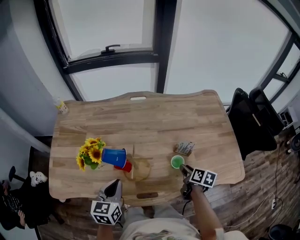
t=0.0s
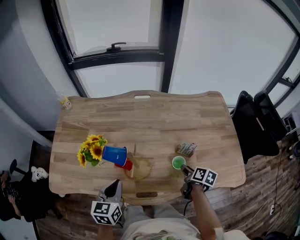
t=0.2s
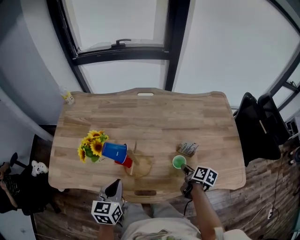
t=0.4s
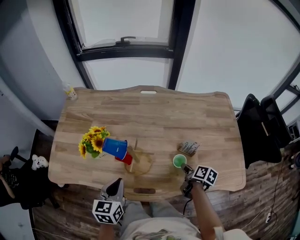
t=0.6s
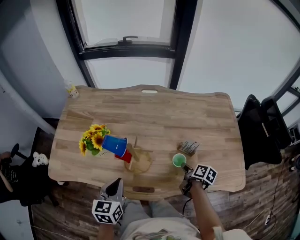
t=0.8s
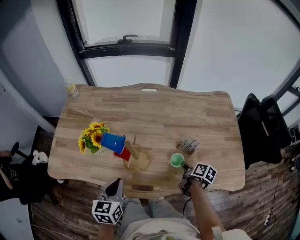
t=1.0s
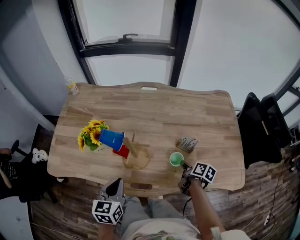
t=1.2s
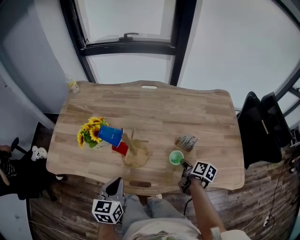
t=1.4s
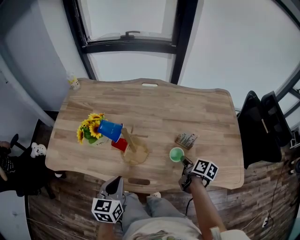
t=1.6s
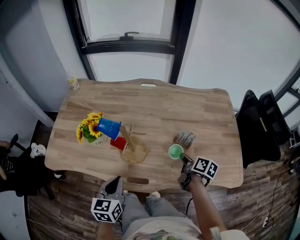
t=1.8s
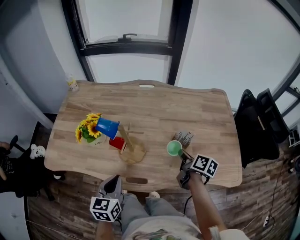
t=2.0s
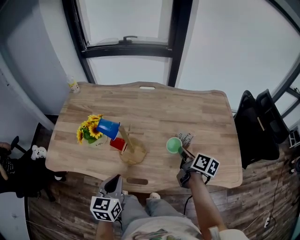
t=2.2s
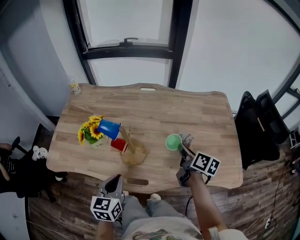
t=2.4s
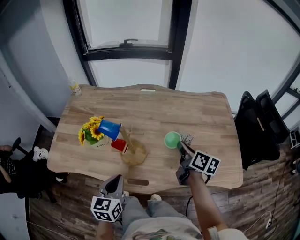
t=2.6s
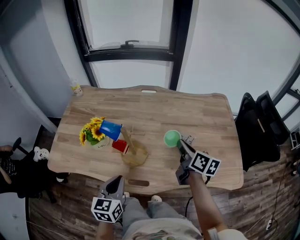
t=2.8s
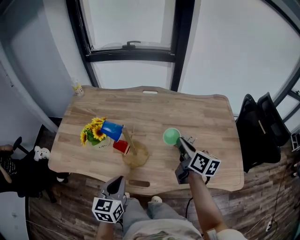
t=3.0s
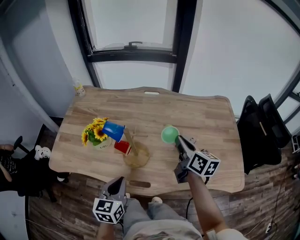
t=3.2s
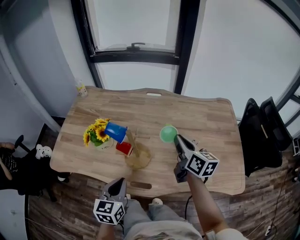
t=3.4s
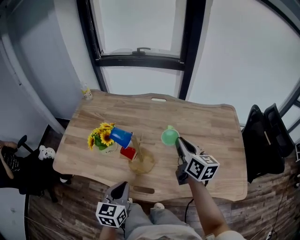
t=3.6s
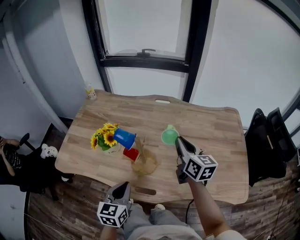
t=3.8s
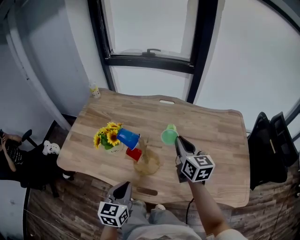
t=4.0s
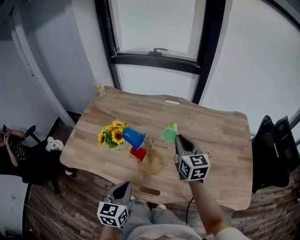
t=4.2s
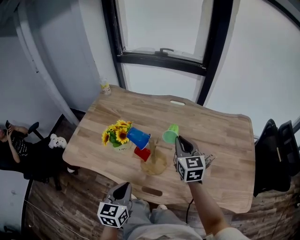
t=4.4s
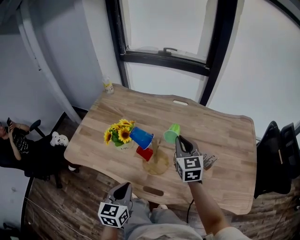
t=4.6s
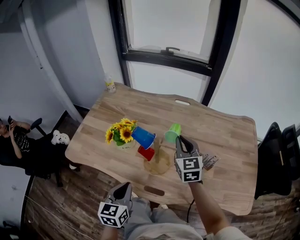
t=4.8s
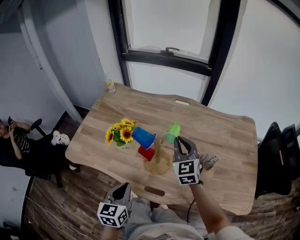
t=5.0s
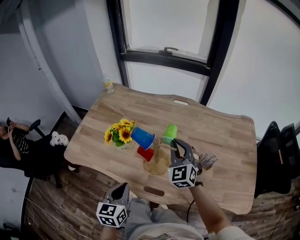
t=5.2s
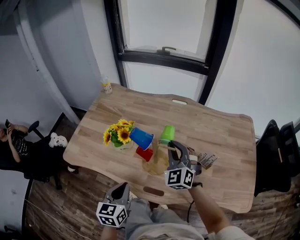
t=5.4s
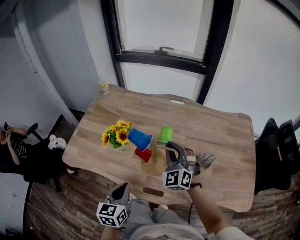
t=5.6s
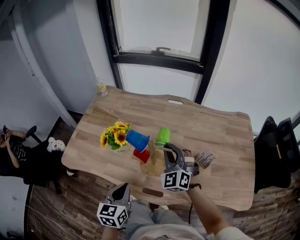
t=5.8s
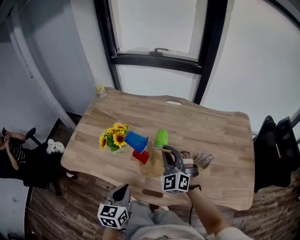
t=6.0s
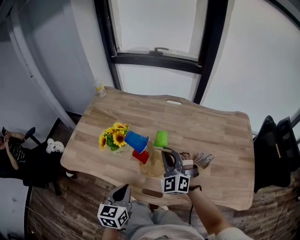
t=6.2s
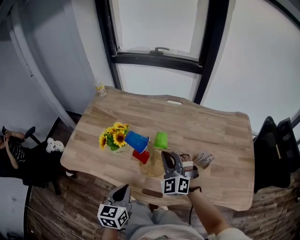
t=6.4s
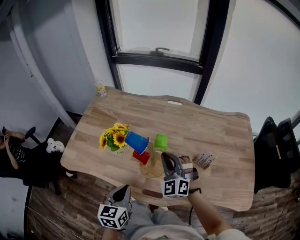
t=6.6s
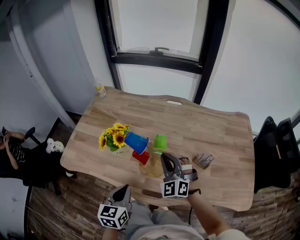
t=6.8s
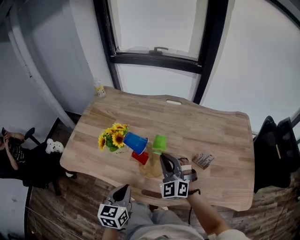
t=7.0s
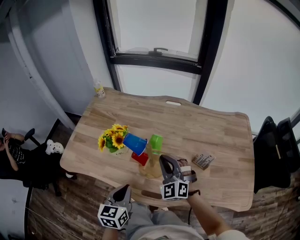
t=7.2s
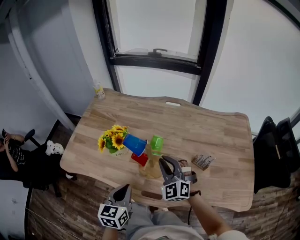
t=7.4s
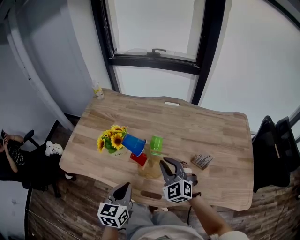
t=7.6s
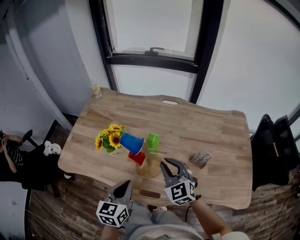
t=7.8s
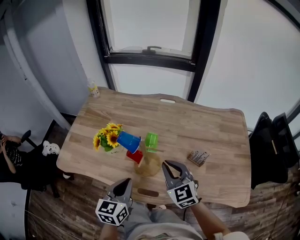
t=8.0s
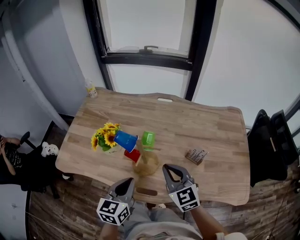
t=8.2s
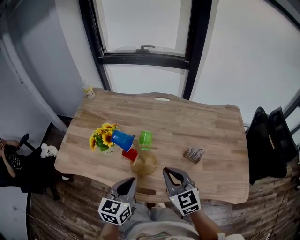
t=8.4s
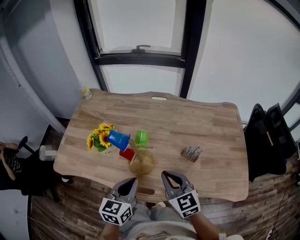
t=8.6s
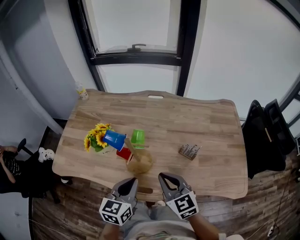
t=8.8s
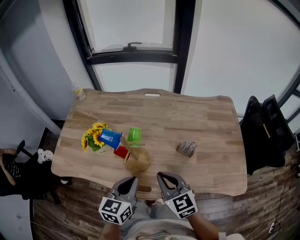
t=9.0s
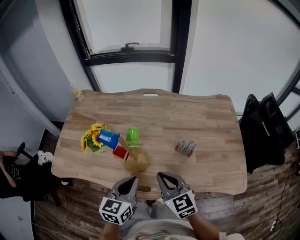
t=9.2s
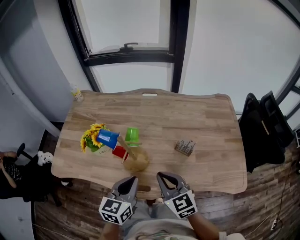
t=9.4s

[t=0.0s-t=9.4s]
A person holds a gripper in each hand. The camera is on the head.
t=0.0s to t=1.6s: The left gripper travels backward by about 10 cm. Meanwhile the right gripper closes its fingers.
t=1.6s to t=3.2s: The right gripper goes approximately 20 cm upward, and turns by approximately 40 degrees.
t=3.2s to t=4.8s: The right gripper moves to the left and forward, roughly 15 cm, and rolls counterclockwise, seen from behind, by approximately 50 degrees. Meanwhile the left gripper travels to the left by some 5 cm.
t=4.8s to t=6.2s: The right gripper ends up about 5 cm from where it was, and rolls counterclockwise, seen from behind, by some 40 degrees.
t=6.2s to t=7.8s: The right gripper changes its angle by about 30 degrees.
t=7.8s to t=9.4s: The right gripper travels backward and to the right by roughly 10 cm, and changes its angle by roughly 20 degrees. The left gripper heads to the right, covering roughly 10 cm.

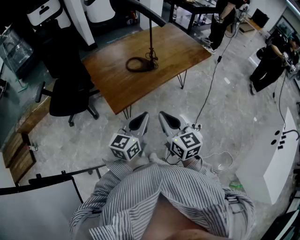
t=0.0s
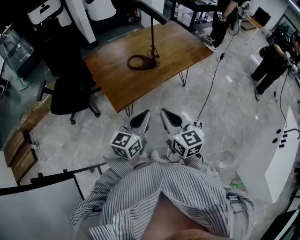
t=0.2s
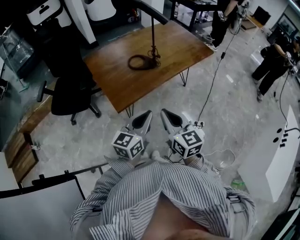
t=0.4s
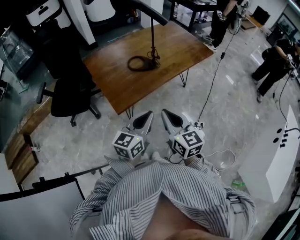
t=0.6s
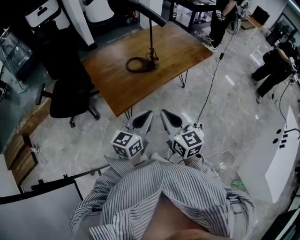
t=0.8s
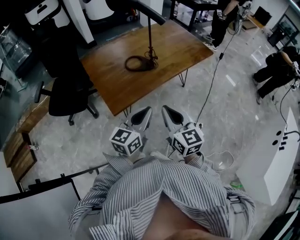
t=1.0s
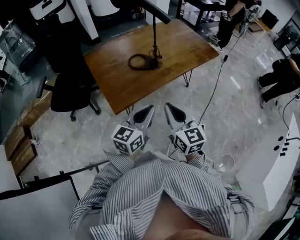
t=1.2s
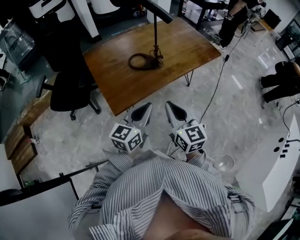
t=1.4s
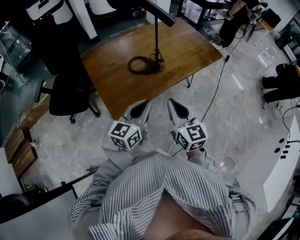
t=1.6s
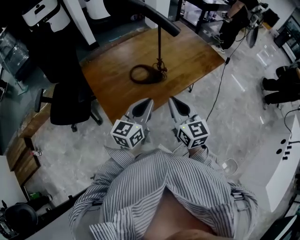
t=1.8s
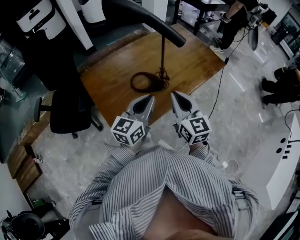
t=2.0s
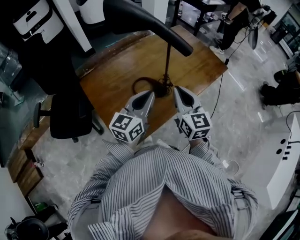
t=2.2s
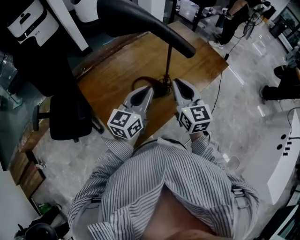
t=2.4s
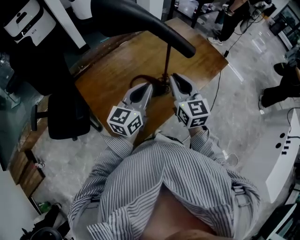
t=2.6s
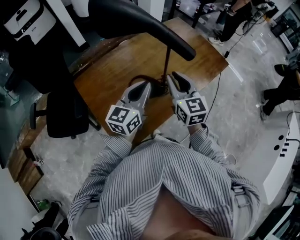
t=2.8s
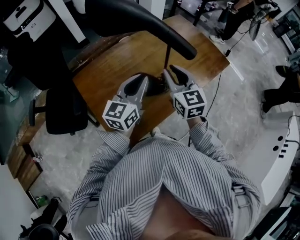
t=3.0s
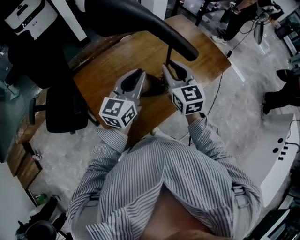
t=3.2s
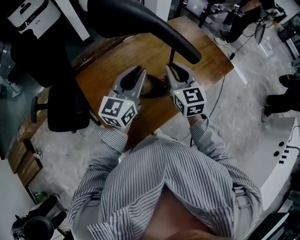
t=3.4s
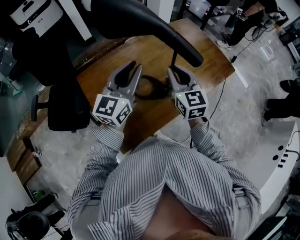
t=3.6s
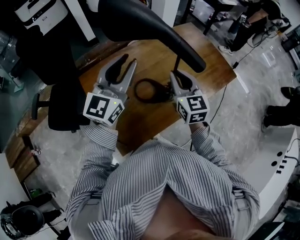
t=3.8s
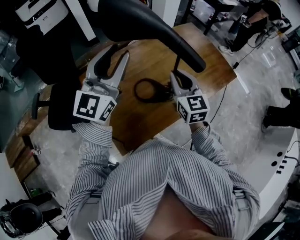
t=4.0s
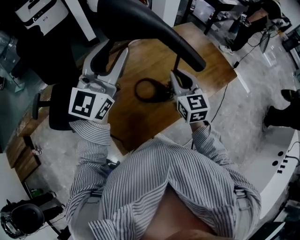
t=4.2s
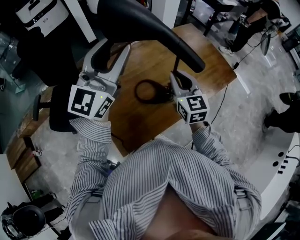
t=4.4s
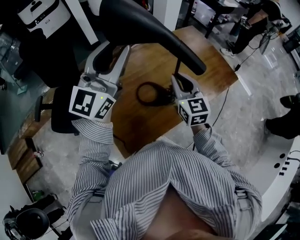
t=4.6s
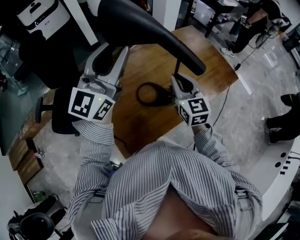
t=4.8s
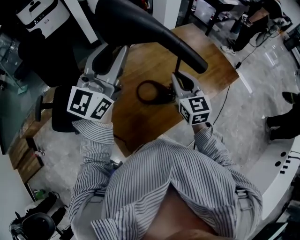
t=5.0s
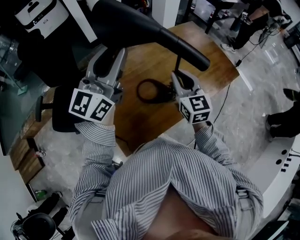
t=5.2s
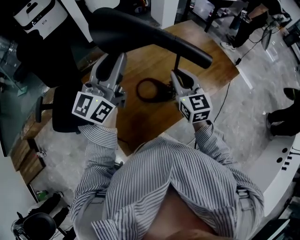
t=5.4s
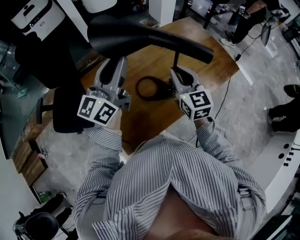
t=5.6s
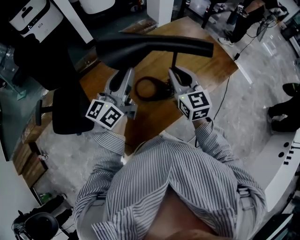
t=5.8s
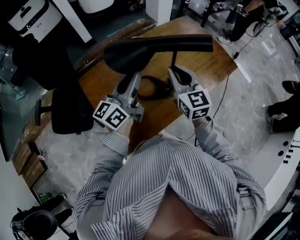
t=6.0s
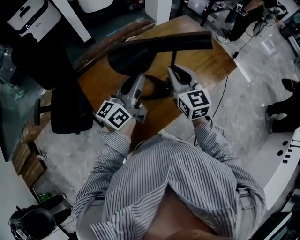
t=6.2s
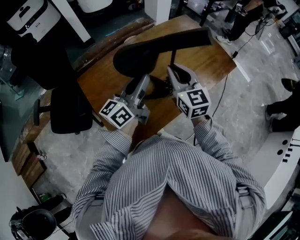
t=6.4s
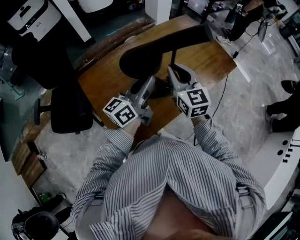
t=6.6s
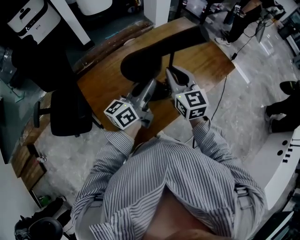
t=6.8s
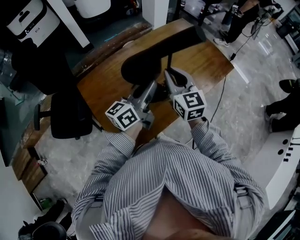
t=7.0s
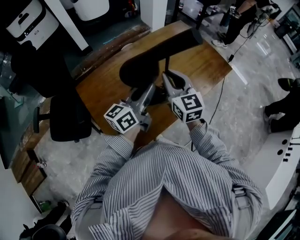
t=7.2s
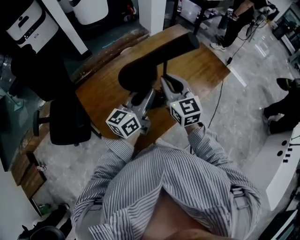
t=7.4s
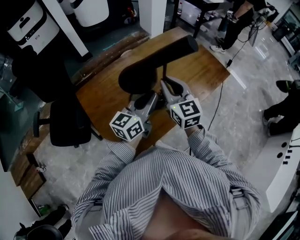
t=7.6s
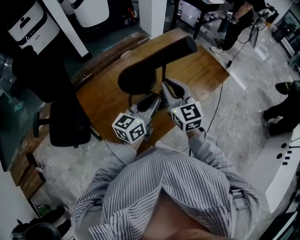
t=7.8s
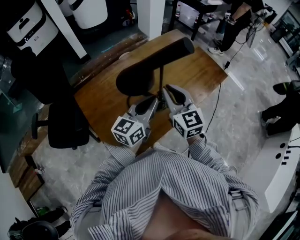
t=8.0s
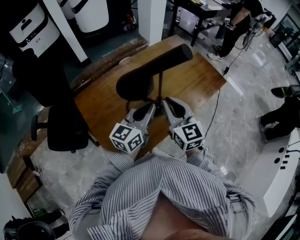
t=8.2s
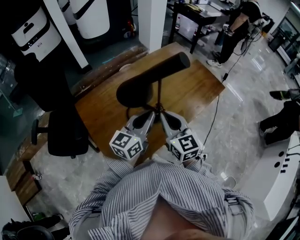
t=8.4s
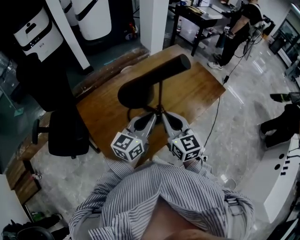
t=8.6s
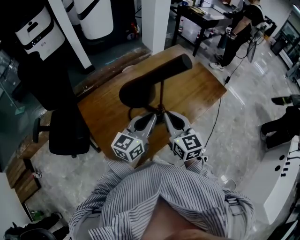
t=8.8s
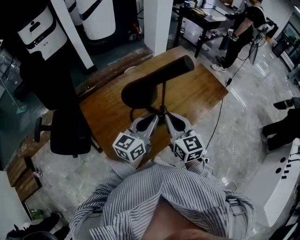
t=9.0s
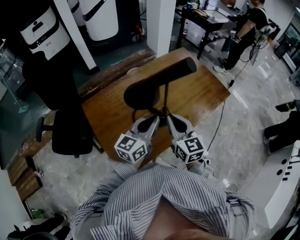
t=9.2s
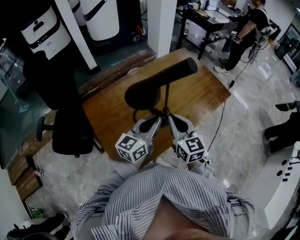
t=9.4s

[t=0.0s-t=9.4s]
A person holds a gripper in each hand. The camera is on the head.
t=0.0s to t=1.6s: The two grippers go approximately 15 cm forward.
t=1.6s to t=3.2s: Both grippers move forward, roughly 30 cm.
t=3.2s to t=4.8s: The left gripper heads upward, covering roughly 20 cm, and swivels some 30 degrees.
t=4.8s to t=6.2s: The left gripper travels downward by some 15 cm, and rotates around the line of its fingers by approximately 40 degrees, counterclockwise from behind.
t=6.2s to t=7.8s: The left gripper heads to the right, covering about 10 cm.
t=7.8s to t=9.4s: The right gripper moves backward, roughly 5 cm.

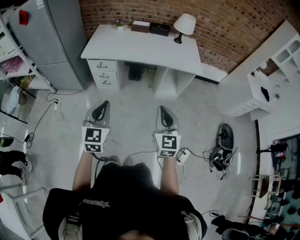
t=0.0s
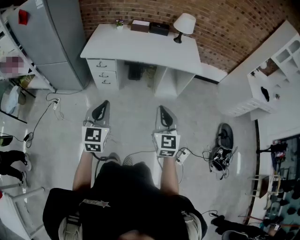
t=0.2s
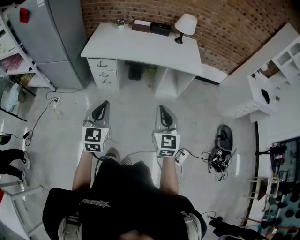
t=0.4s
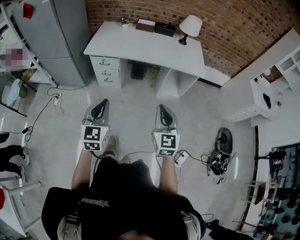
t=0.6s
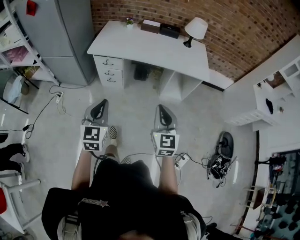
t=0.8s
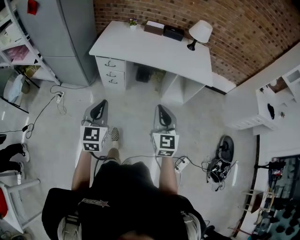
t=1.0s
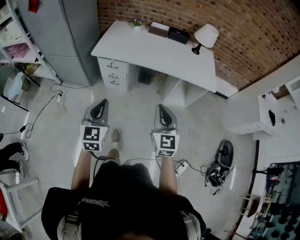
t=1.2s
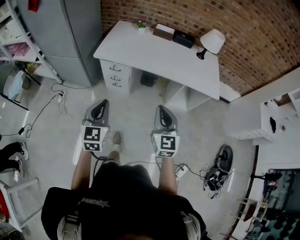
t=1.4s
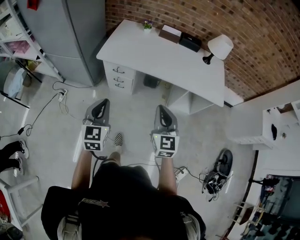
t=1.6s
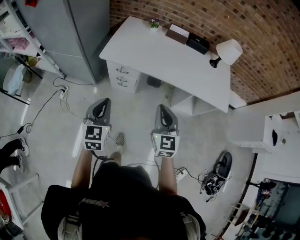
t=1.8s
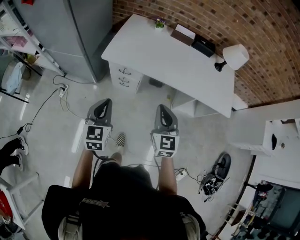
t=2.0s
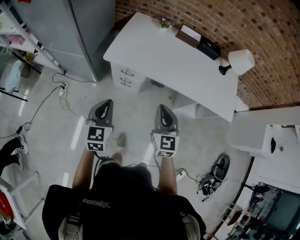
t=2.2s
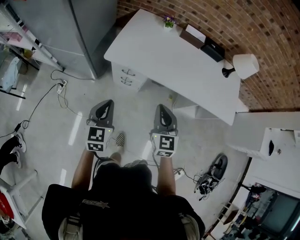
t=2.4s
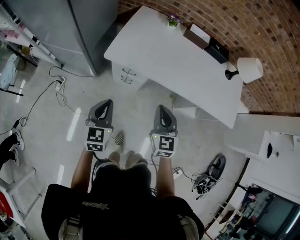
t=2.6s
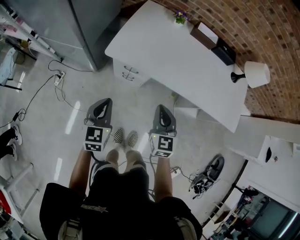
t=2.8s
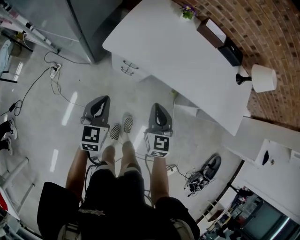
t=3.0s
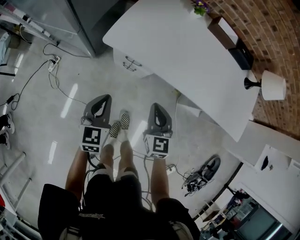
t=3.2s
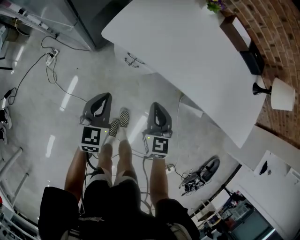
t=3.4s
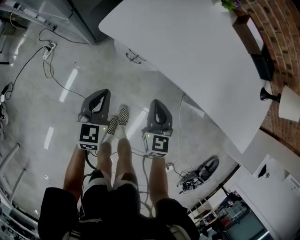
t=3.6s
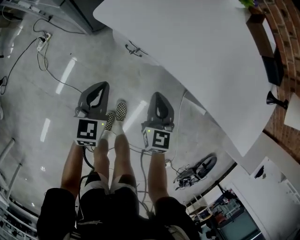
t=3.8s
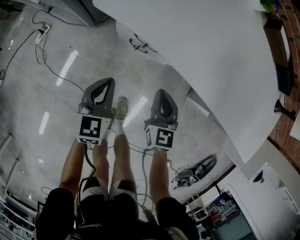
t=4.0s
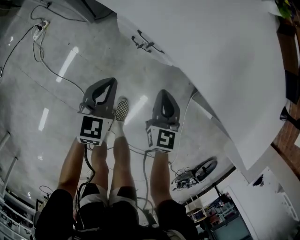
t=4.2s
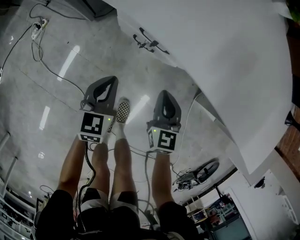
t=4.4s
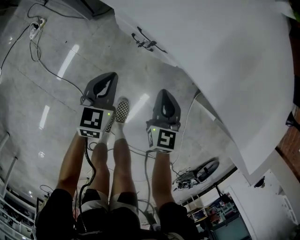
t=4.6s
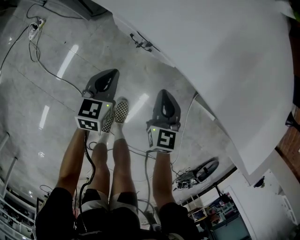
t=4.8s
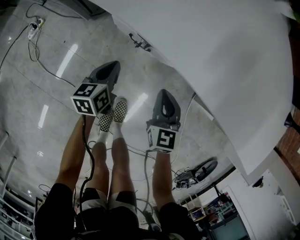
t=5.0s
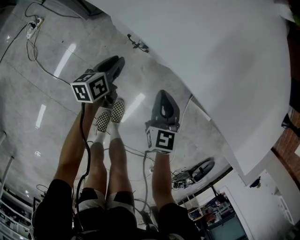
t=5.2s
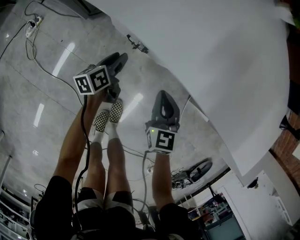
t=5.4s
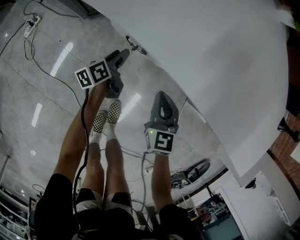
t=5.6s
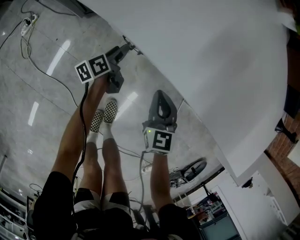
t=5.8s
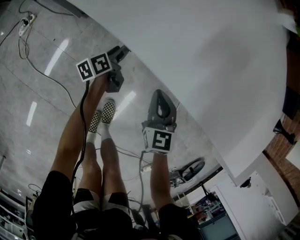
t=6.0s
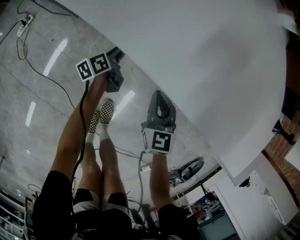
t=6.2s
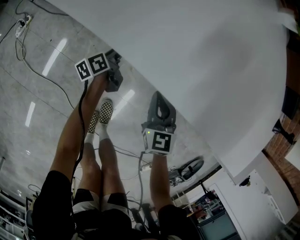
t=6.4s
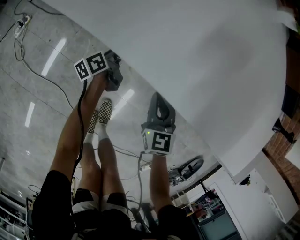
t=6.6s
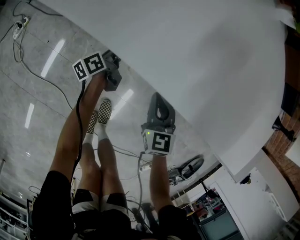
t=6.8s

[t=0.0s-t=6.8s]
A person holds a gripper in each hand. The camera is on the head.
t=0.0s to t=1.4s: Both grippers travel together forward and to the left, about 20 cm.
t=1.4s to t=2.8s: The left gripper shifts approximately 35 cm forward, downward and to the left; the right gripper travels forward, to the left and downward by some 35 cm.
t=2.8s to t=4.0s: Both grippers move downward, approximately 35 cm.
t=4.0s to t=5.4s: The right gripper travels downward by about 10 cm. The left gripper moves downward and forward, some 25 cm, rolls counterclockwise, seen from behind, by roughly 50 degrees, and opens.
t=5.4s to t=6.8s: The left gripper heads downward and forward, covering about 10 cm, and closes.
